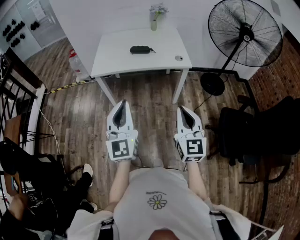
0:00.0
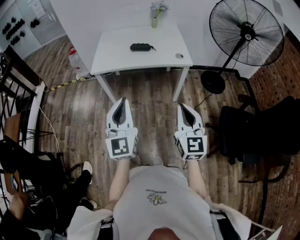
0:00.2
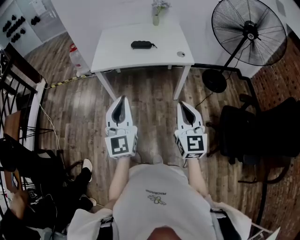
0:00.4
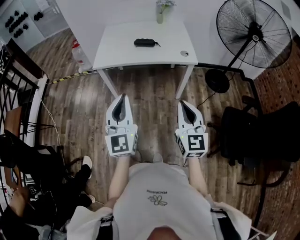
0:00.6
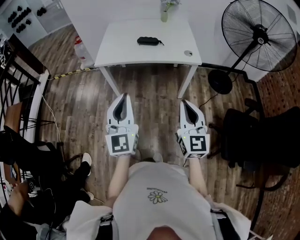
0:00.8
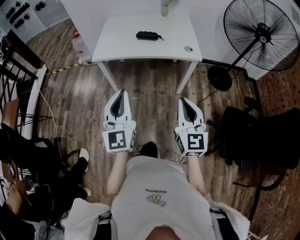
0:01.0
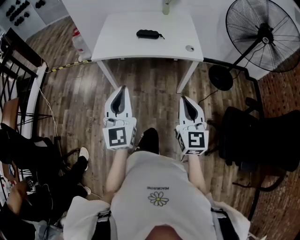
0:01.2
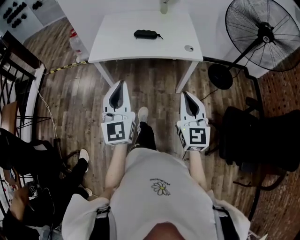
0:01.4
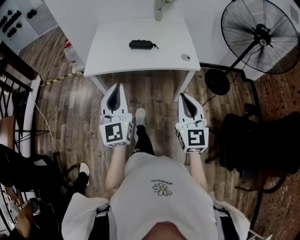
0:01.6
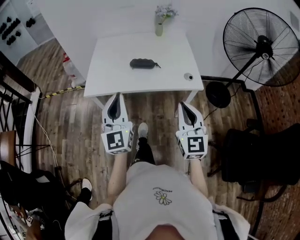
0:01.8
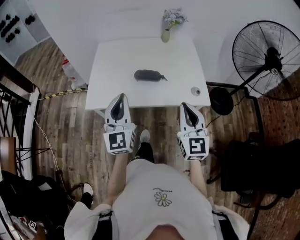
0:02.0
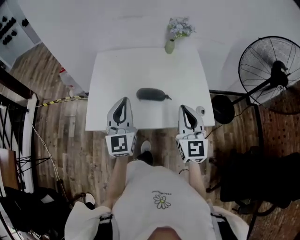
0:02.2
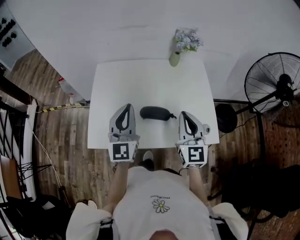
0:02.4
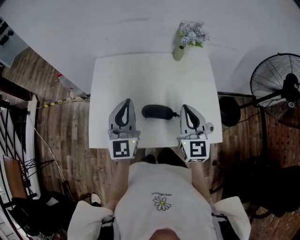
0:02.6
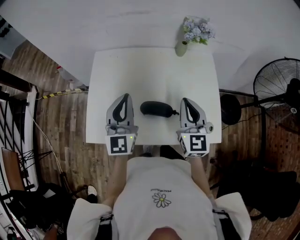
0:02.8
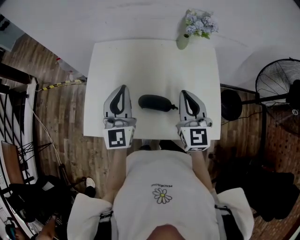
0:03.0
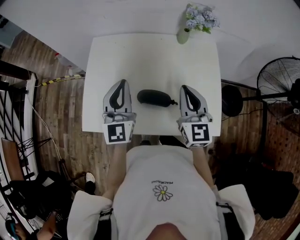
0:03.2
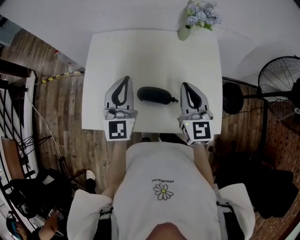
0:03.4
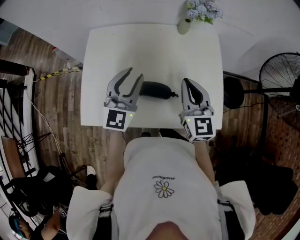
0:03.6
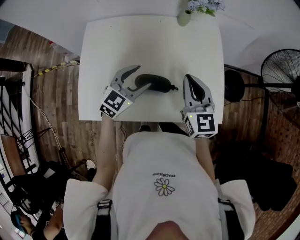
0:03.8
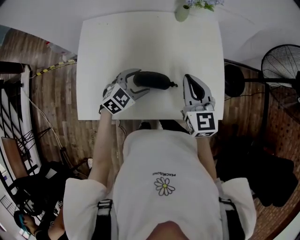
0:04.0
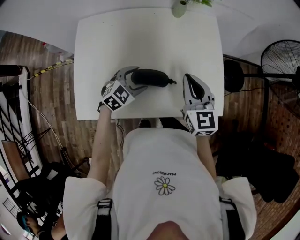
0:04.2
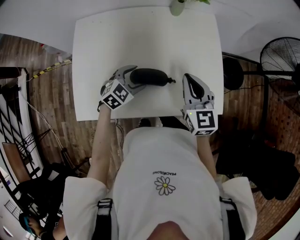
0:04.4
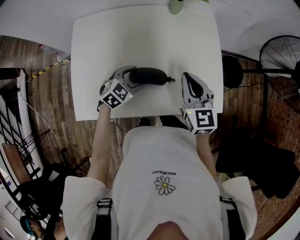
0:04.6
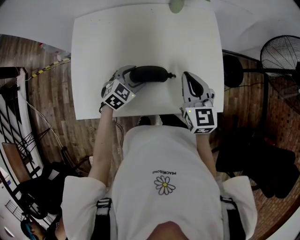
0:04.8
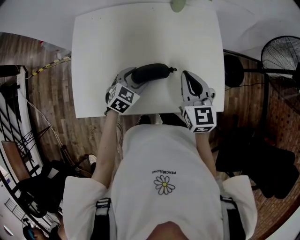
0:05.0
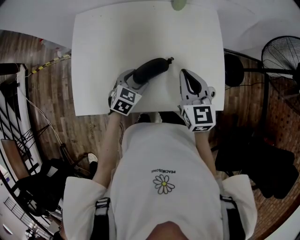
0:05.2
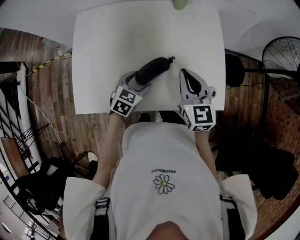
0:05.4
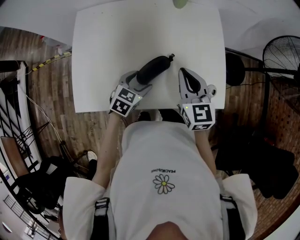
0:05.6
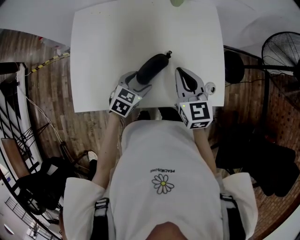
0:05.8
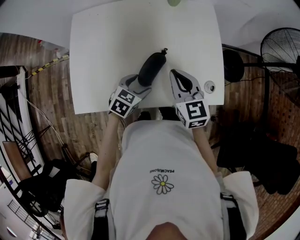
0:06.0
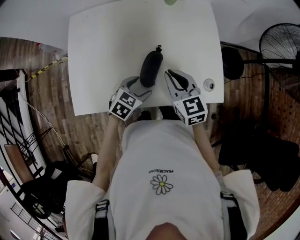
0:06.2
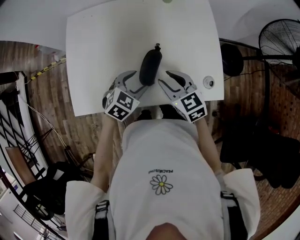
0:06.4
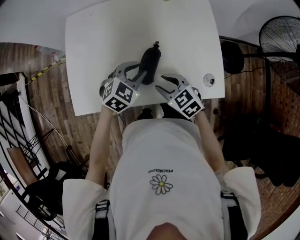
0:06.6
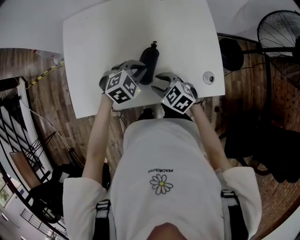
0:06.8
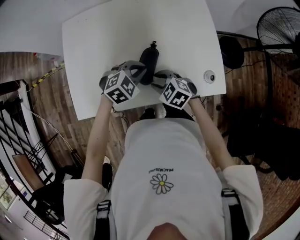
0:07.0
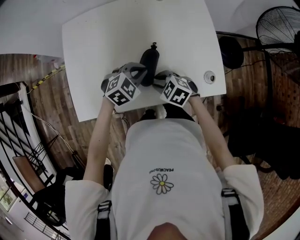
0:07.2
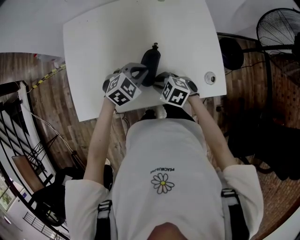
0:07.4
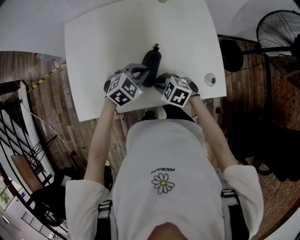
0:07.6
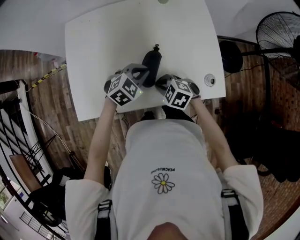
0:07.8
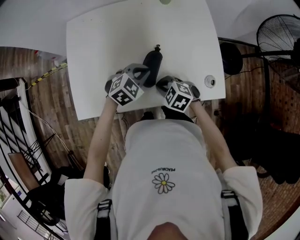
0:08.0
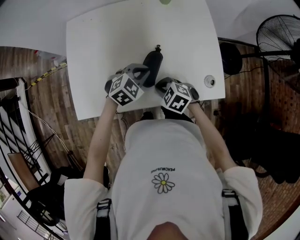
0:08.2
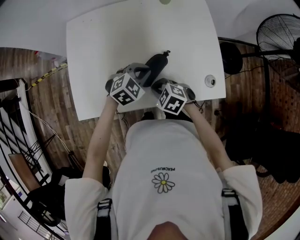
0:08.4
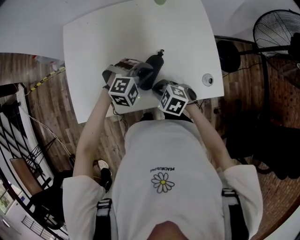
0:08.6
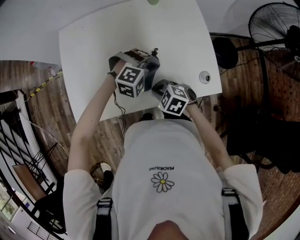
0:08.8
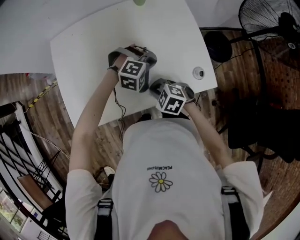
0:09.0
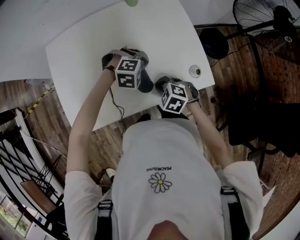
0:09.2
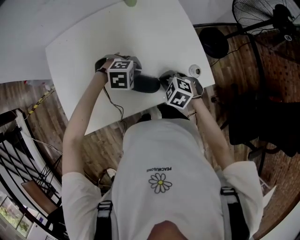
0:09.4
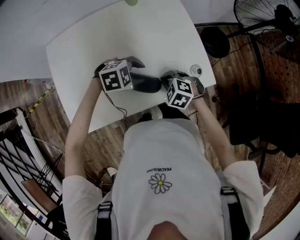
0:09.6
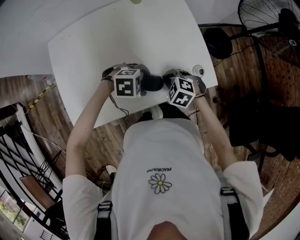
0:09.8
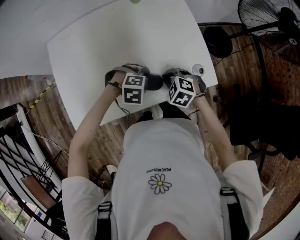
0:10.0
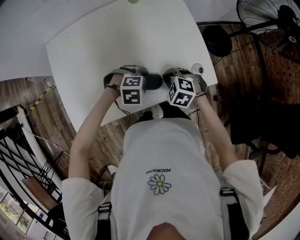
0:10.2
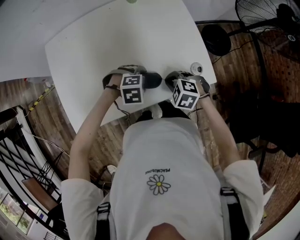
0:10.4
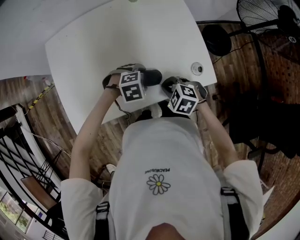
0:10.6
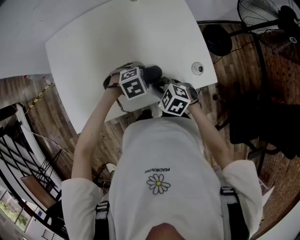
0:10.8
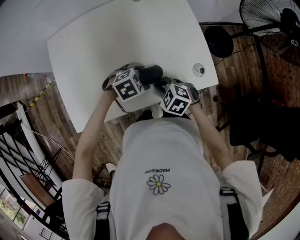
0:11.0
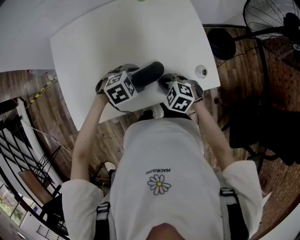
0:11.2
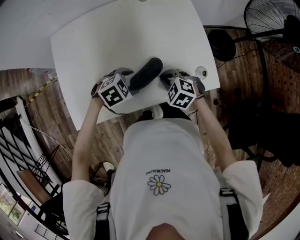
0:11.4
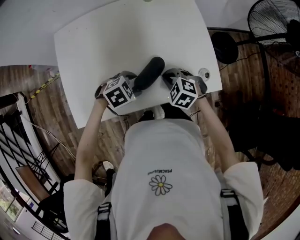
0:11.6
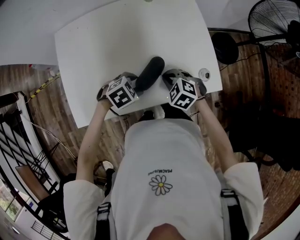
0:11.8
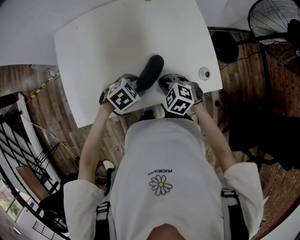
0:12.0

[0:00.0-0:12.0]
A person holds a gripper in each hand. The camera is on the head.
0:00.0 to 0:01.6: Both grippers move forward, some 20 cm.
0:01.6 to 0:03.0: The pair of grippers is taken forward, some 50 cm.
0:03.0 to 0:04.4: The left gripper heads downward, covering approximately 25 cm, points its fingers roughly 50 degrees further downward, and opens up; the right gripper travels downward by about 5 cm.
0:04.4 to 0:06.0: The left gripper is displaced backward by about 5 cm, and turns by some 20 degrees. The right gripper changes place by roughly 5 cm.
0:06.0 to 0:07.6: The left gripper ends up approximately 5 cm from where it was, changes its angle by roughly 30 degrees, and closes; the right gripper heads downward, covering about 15 cm, tilts its fingers about 30 degrees downward, and opens, then closes once more.
0:07.6 to 0:09.0: The left gripper ends up some 10 cm from where it was, and twists about 50 degrees clockwise, seen from behind.
0:09.0 to 0:10.4: The left gripper moves roughly 10 cm, rotates about 30 degrees, and opens up, while the right gripper moves some 10 cm.
0:10.4 to 0:12.0: The left gripper shifts by roughly 5 cm, and swivels roughly 40 degrees. The right gripper ends up roughly 5 cm from where it was.

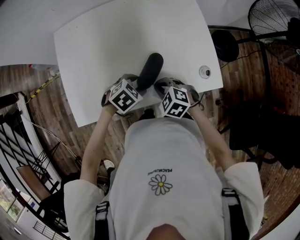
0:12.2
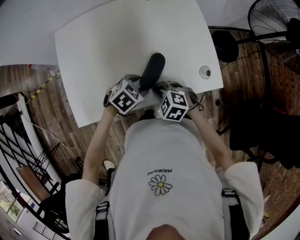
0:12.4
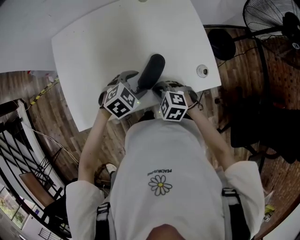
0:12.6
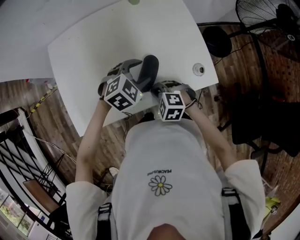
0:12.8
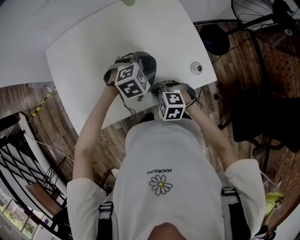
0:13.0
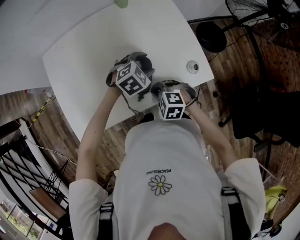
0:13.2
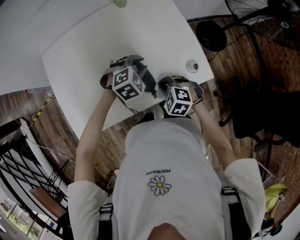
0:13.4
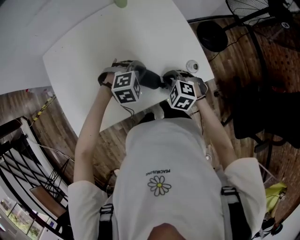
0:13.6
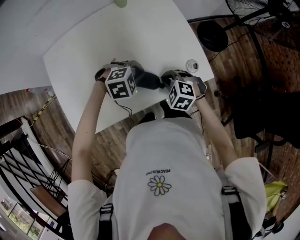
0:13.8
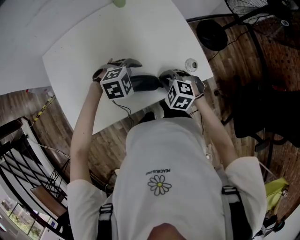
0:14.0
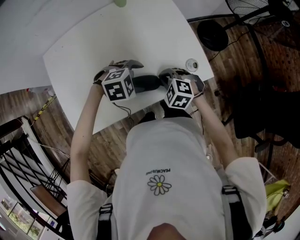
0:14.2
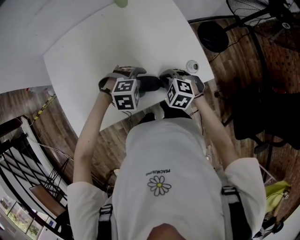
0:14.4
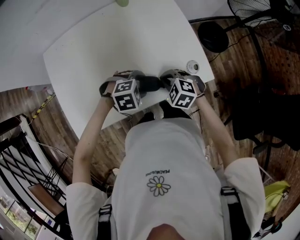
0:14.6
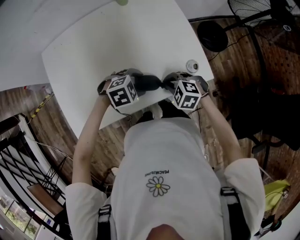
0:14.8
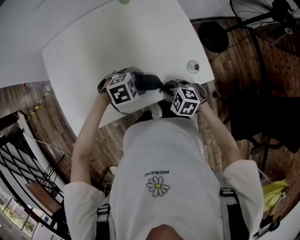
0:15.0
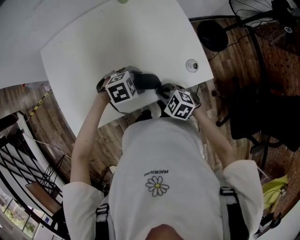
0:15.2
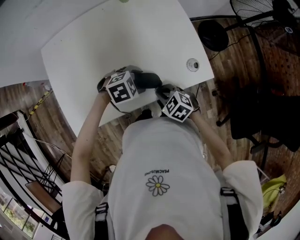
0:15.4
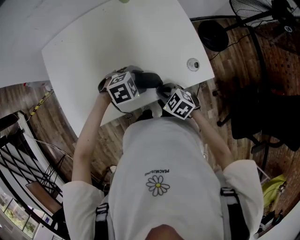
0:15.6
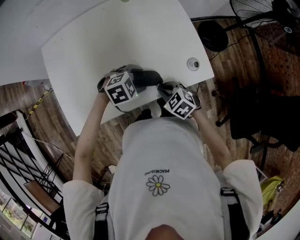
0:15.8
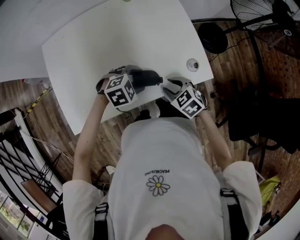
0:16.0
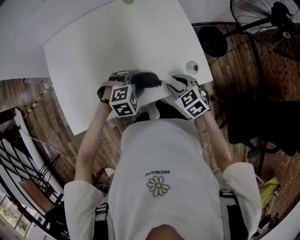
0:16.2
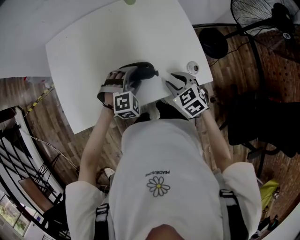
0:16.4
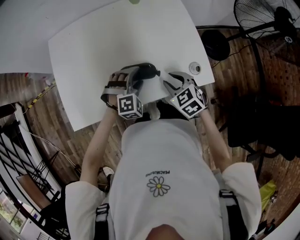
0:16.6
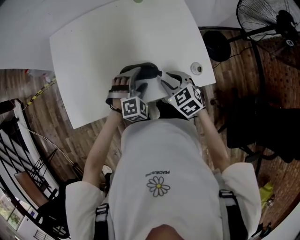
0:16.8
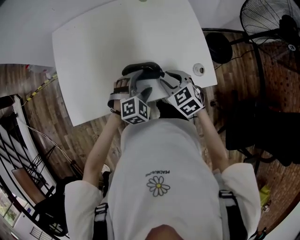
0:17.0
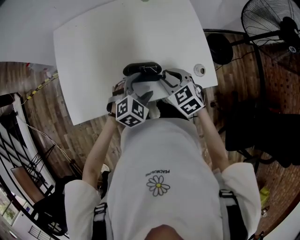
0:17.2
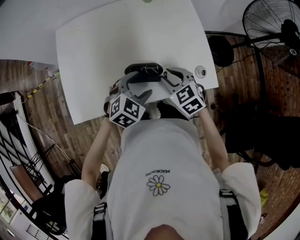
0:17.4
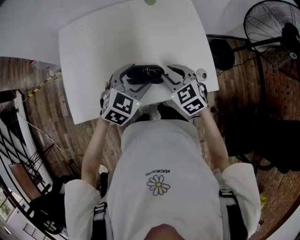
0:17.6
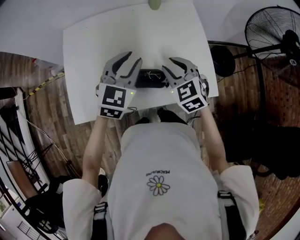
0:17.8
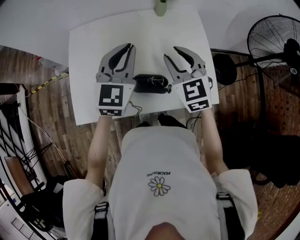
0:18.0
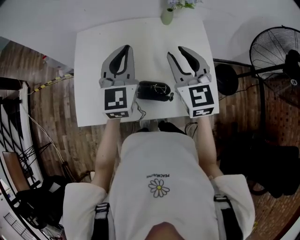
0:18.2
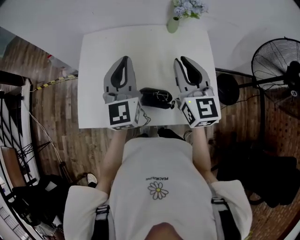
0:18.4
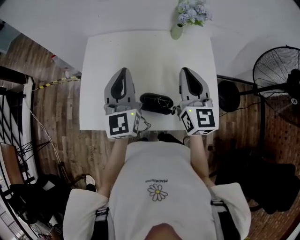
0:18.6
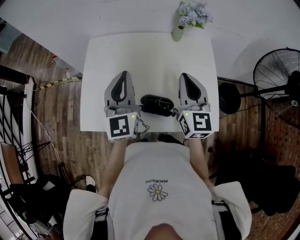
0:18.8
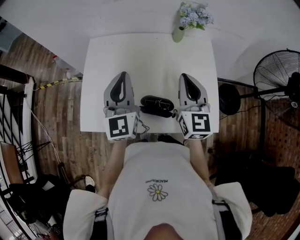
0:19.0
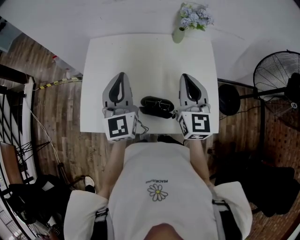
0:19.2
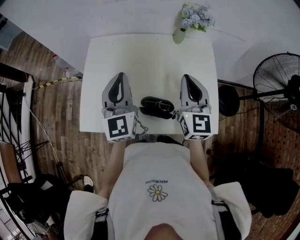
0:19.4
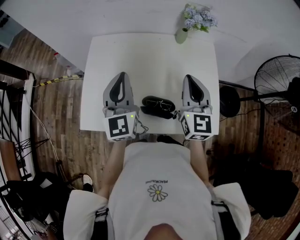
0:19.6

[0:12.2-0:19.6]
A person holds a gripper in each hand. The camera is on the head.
0:12.2 to 0:13.6: The right gripper moves approximately 10 cm, while the left gripper shifts by approximately 10 cm, rolls clockwise, seen from behind, by approximately 40 degrees, and closes up.
0:13.6 to 0:15.2: The left gripper ends up some 5 cm from where it was, changes its angle by roughly 30 degrees, and opens its fingers, while the right gripper moves about 5 cm.
0:15.2 to 0:16.6: The left gripper changes its angle by approximately 50 degrees; the right gripper moves upward, roughly 5 cm, and opens.
0:16.6 to 0:18.2: The right gripper moves upward and forward, about 25 cm, and tilts its fingers roughly 40 degrees upward, while the left gripper heads upward and to the left, covering roughly 30 cm, tilts its fingers roughly 40 degrees upward, and closes its fingers.
0:18.2 to 0:19.6: The left gripper moves to the left, about 5 cm. The right gripper closes its fingers.

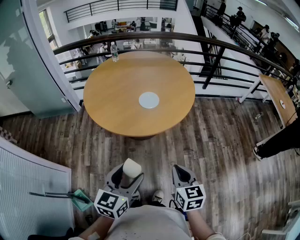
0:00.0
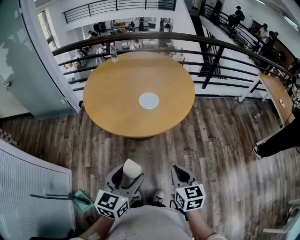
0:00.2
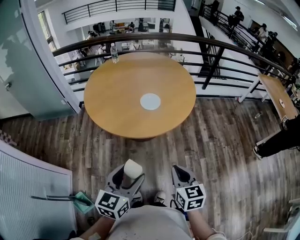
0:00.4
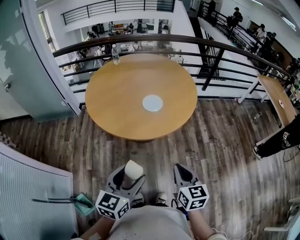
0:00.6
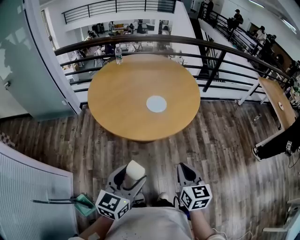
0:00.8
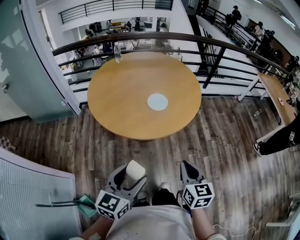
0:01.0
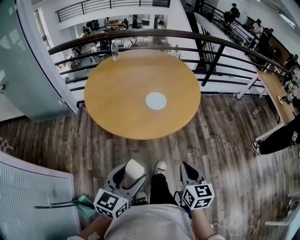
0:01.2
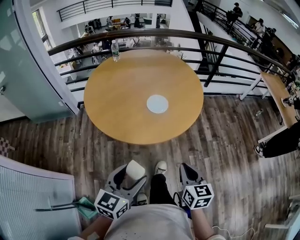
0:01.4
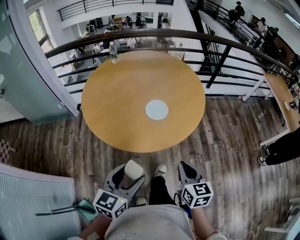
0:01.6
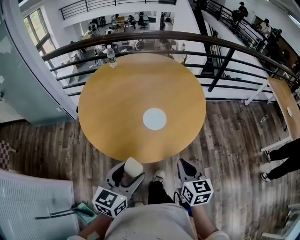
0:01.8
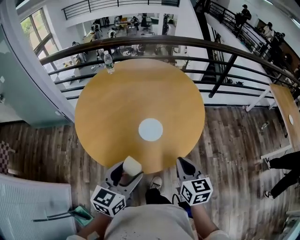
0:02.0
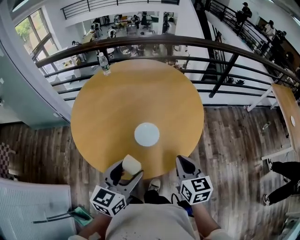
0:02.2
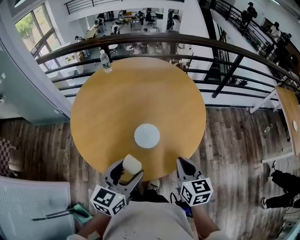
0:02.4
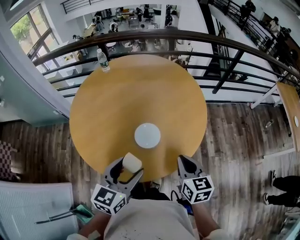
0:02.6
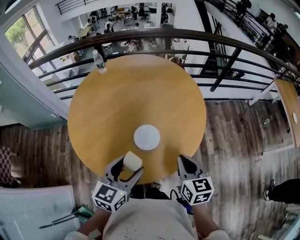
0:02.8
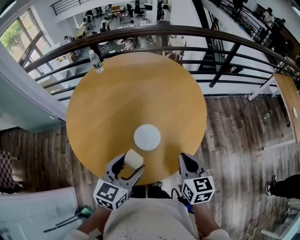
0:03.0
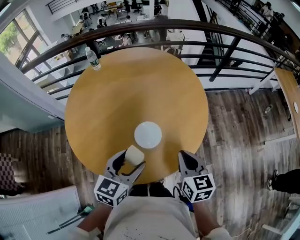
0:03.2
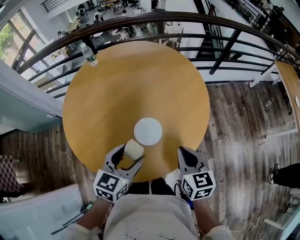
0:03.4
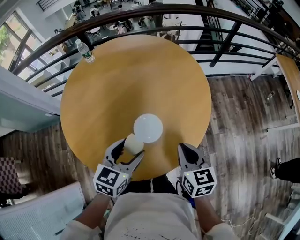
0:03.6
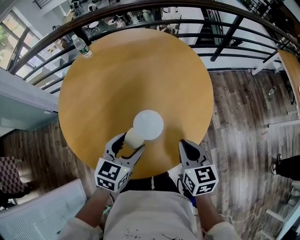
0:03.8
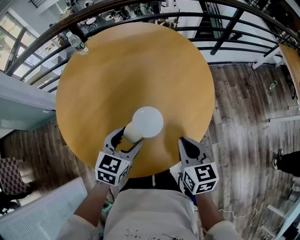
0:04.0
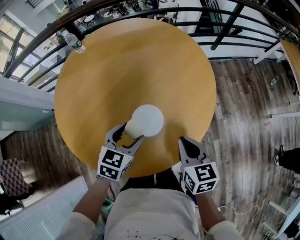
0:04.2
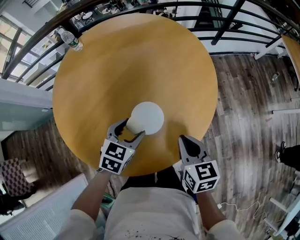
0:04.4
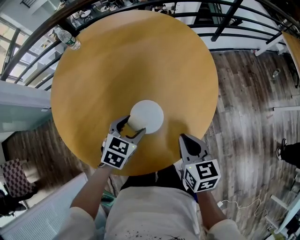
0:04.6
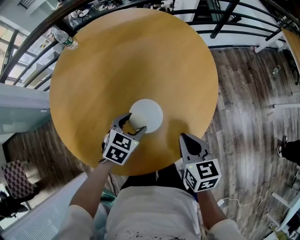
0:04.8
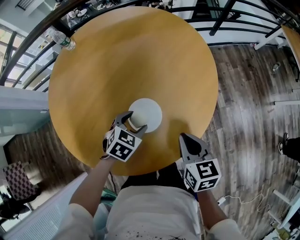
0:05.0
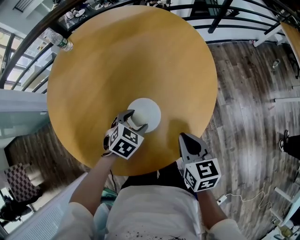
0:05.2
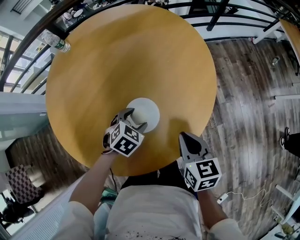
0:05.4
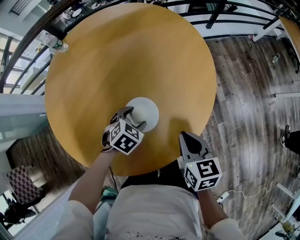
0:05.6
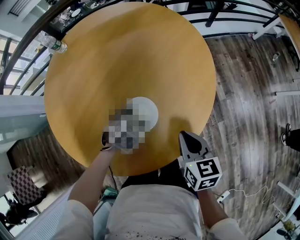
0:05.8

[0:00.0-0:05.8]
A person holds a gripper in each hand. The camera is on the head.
0:00.0 to 0:01.4: The right gripper heads forward, covering some 10 cm, while the left gripper shifts approximately 10 cm forward and to the left.
0:01.4 to 0:02.8: Both grippers travel together forward, roughly 30 cm.
0:02.8 to 0:04.4: The right gripper is displaced downward by some 10 cm, while the left gripper is displaced downward and forward by about 20 cm, and rotates some 30 degrees.
0:04.4 to 0:05.8: The left gripper travels downward by some 10 cm, and changes its angle by roughly 30 degrees.
